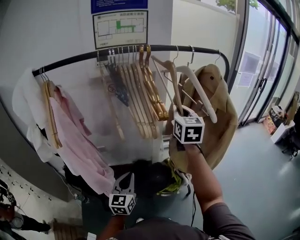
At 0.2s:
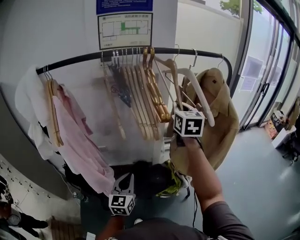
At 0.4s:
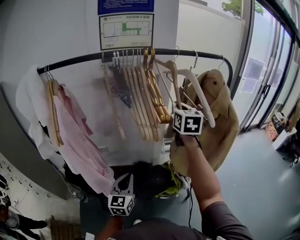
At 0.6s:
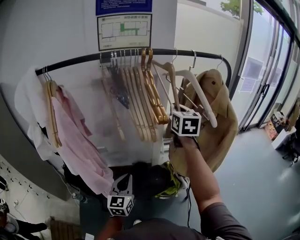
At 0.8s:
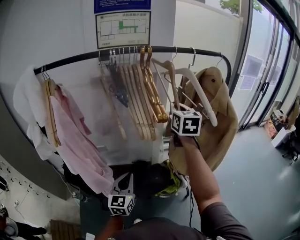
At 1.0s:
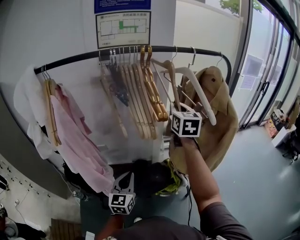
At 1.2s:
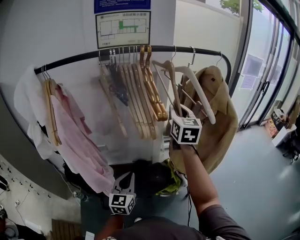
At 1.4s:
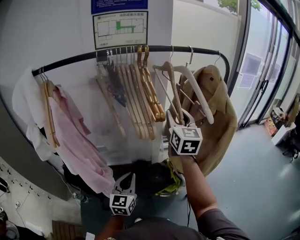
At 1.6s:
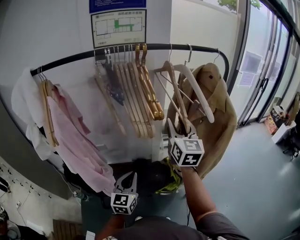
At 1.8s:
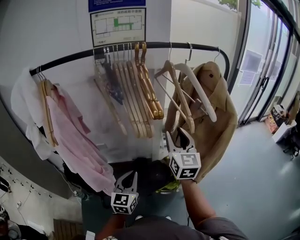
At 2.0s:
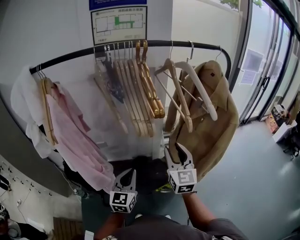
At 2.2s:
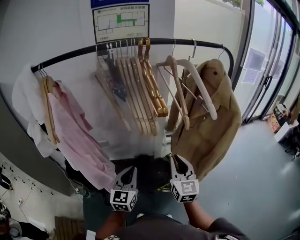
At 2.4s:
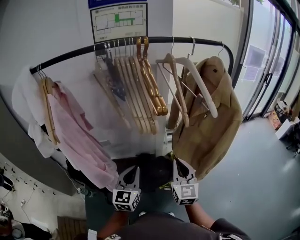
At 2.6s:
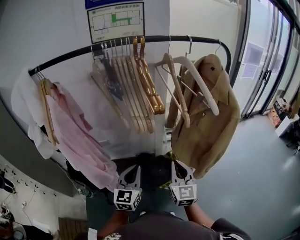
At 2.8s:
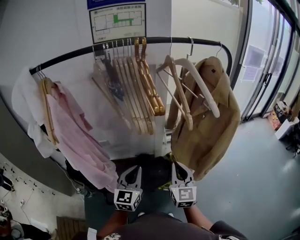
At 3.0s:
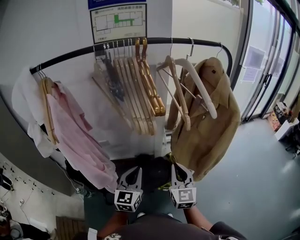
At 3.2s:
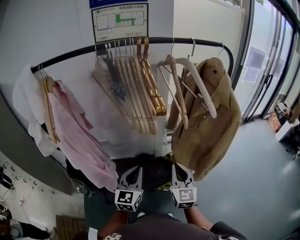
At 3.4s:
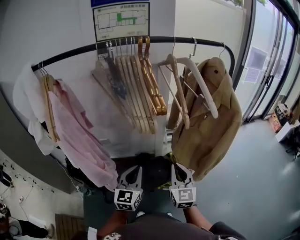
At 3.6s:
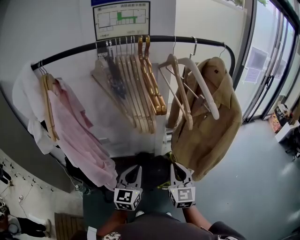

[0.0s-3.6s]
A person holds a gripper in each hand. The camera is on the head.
0.0s to 1.8s: The right gripper heads backward and downward, covering some 10 cm, and opens its fingers.
1.8s to 3.6s: The right gripper travels downward and backward by approximately 15 cm, and closes its fingers.

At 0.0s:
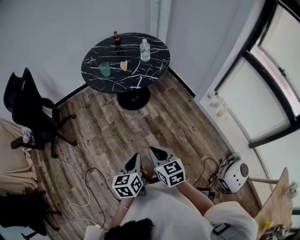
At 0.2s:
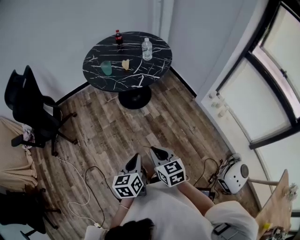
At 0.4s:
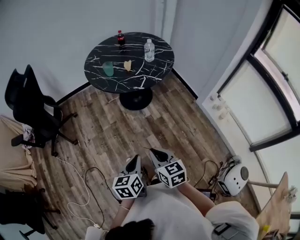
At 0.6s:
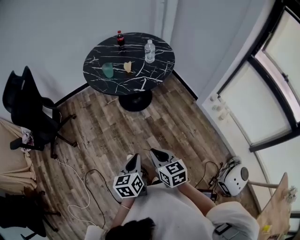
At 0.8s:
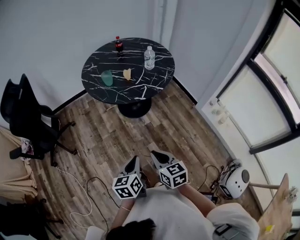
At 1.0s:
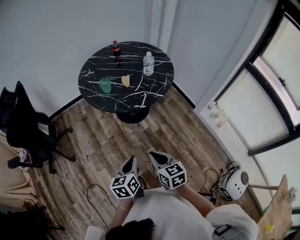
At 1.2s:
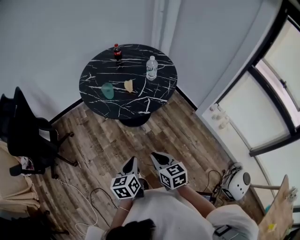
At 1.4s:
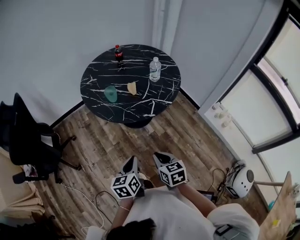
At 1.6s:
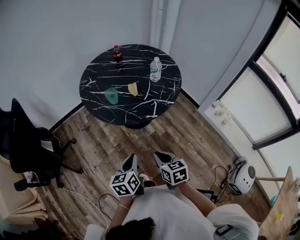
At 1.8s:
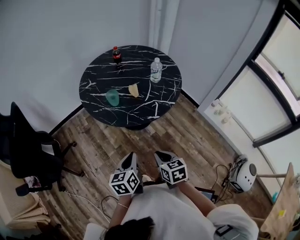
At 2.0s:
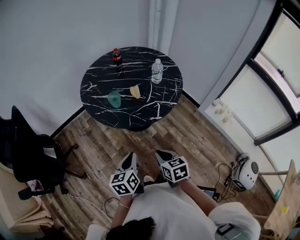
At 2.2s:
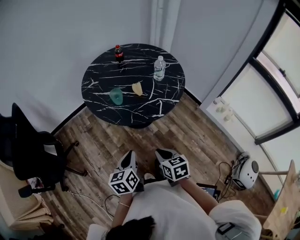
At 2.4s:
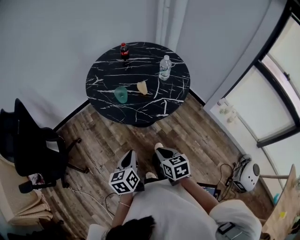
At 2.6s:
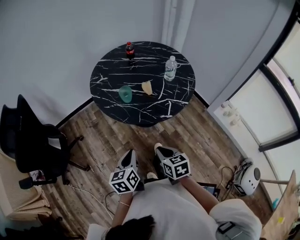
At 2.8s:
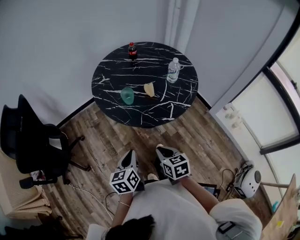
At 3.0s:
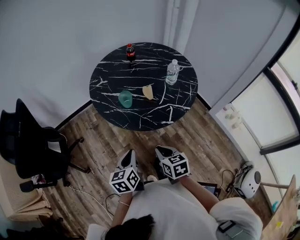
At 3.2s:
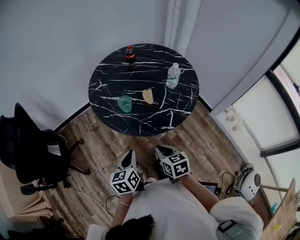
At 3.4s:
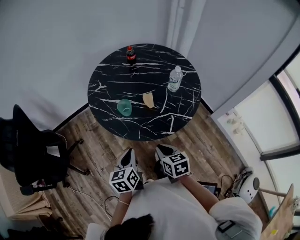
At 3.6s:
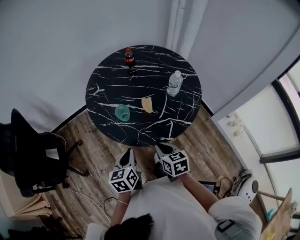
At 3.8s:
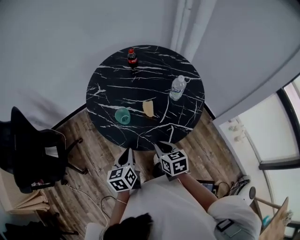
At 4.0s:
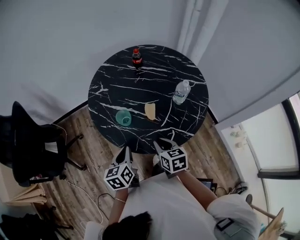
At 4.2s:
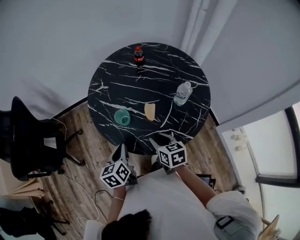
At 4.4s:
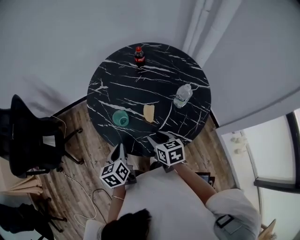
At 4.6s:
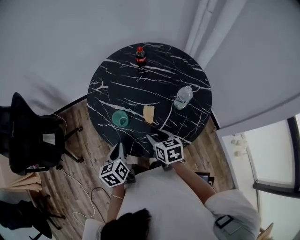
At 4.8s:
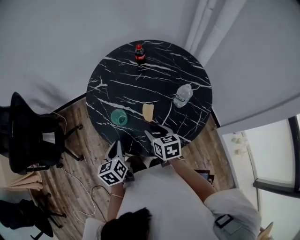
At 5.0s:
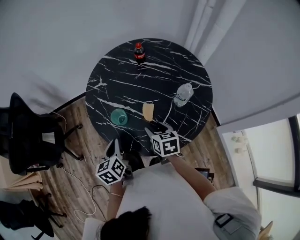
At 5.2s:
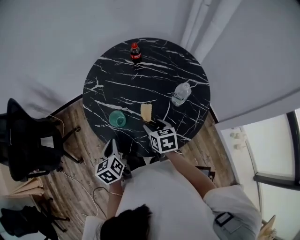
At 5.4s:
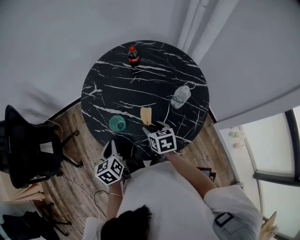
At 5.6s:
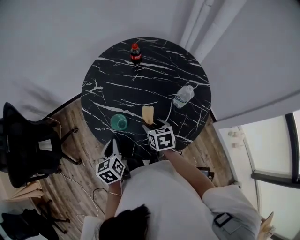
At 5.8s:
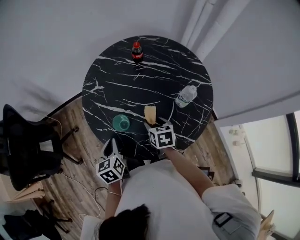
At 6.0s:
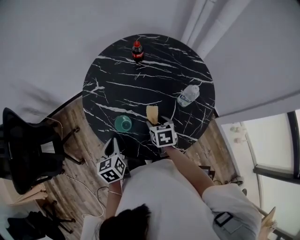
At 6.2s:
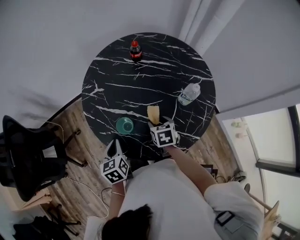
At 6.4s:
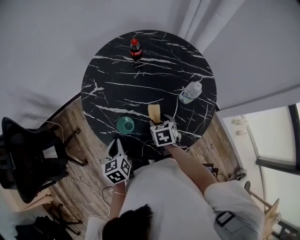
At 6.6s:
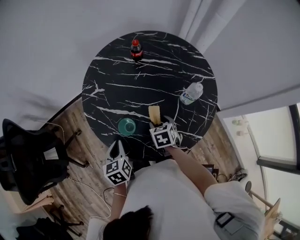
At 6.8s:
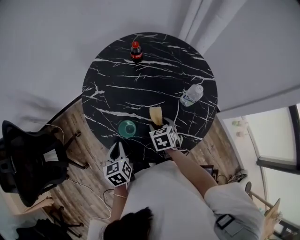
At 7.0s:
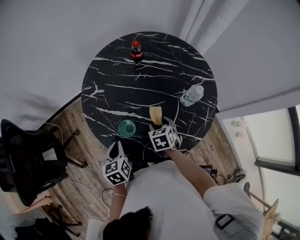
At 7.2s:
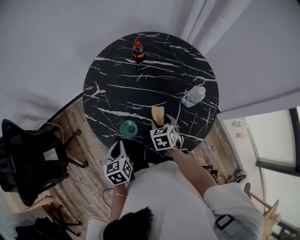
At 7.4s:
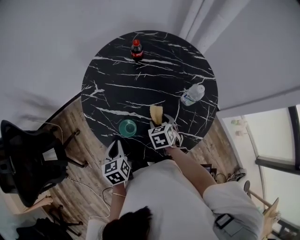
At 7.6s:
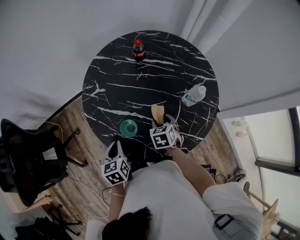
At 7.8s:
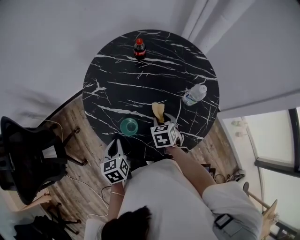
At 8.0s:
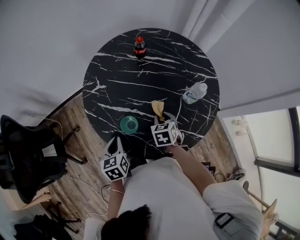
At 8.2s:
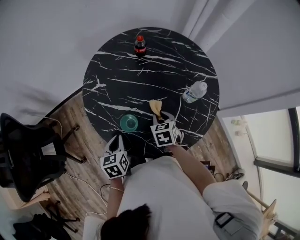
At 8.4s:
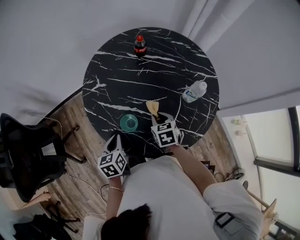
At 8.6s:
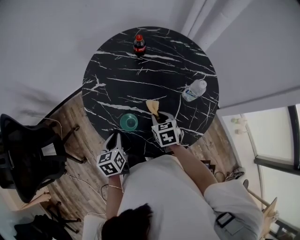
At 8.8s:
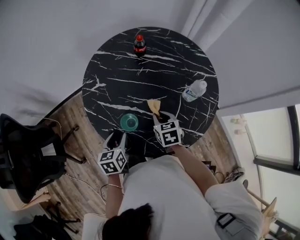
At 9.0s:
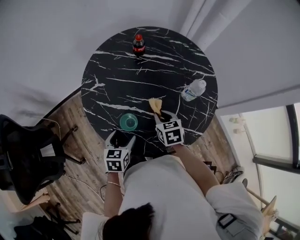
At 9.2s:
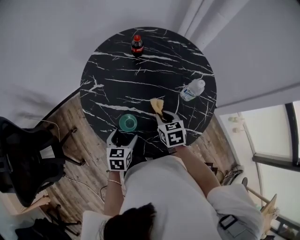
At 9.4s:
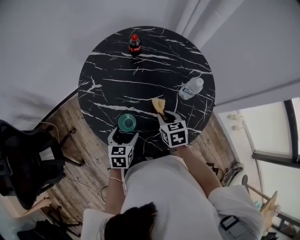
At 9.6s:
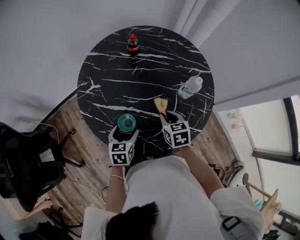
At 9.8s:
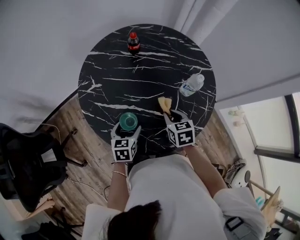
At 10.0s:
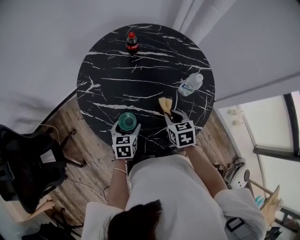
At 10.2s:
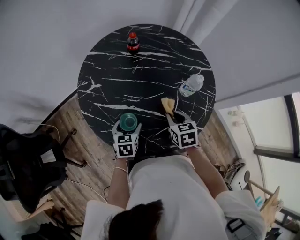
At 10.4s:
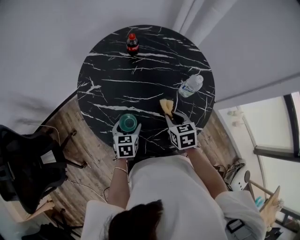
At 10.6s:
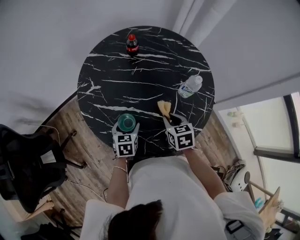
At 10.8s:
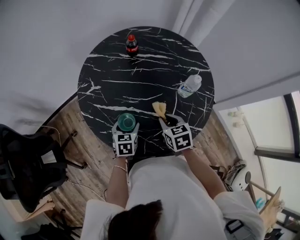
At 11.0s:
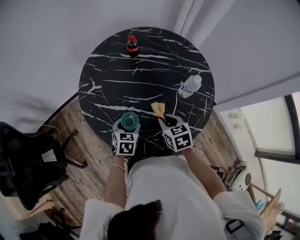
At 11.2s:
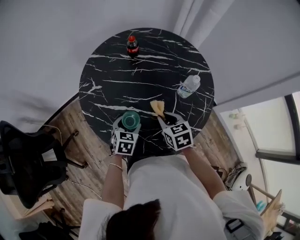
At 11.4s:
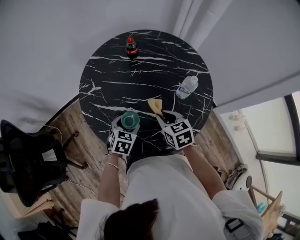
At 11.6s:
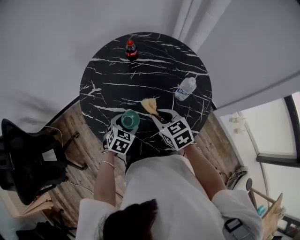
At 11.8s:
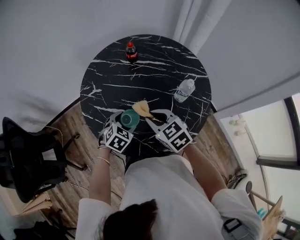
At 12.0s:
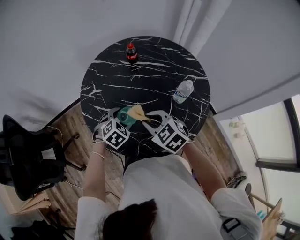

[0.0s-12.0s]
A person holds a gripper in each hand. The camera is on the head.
0.0s to 1.6s: The left gripper shifts approximately 30 cm forward and to the left; the right gripper moves forward, roughly 20 cm.
1.6s to 3.0s: The left gripper shifts approximately 10 cm forward and to the left, while the right gripper travels forward by some 10 cm.
3.0s to 4.4s: The right gripper travels forward and to the right by roughly 25 cm, and opens; the left gripper heads forward, covering approximately 15 cm.
4.4s to 6.0s: The right gripper moves forward and downward, some 10 cm; the left gripper goes some 10 cm forward.
6.0s to 7.6s: The grippers make only small movements.
7.6s to 9.0s: The right gripper closes its fingers. The left gripper shifts by some 5 cm, turns by approximately 20 degrees, and opens.
9.0s to 10.4s: The left gripper goes roughly 5 cm forward, while the right gripper is displaced to the right by approximately 5 cm.
10.4s to 12.0s: The left gripper goes about 5 cm upward, and rolls clockwise, seen from behind, by approximately 40 degrees. The right gripper goes approximately 10 cm upward and to the left, and changes its angle by approximately 40 degrees.

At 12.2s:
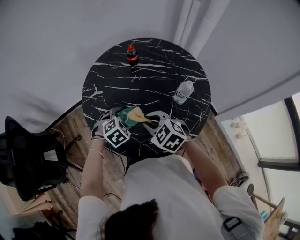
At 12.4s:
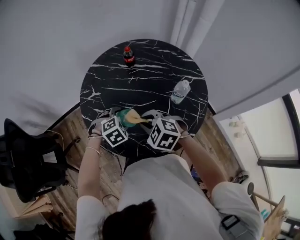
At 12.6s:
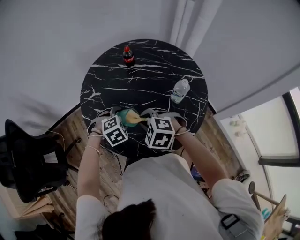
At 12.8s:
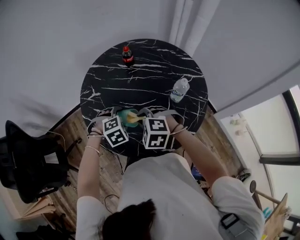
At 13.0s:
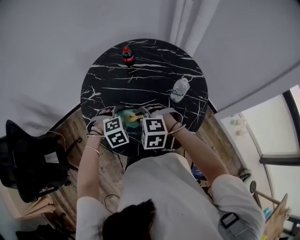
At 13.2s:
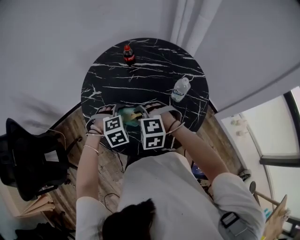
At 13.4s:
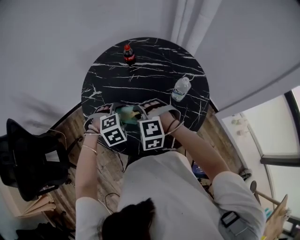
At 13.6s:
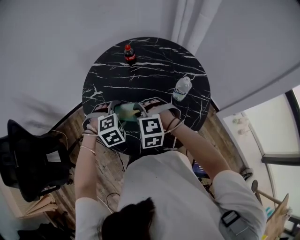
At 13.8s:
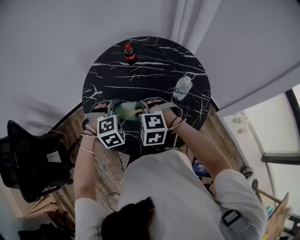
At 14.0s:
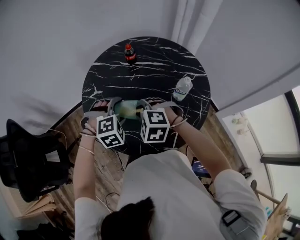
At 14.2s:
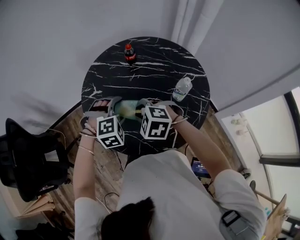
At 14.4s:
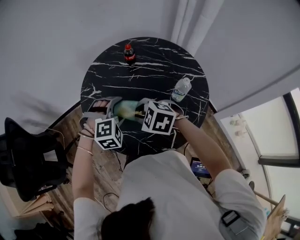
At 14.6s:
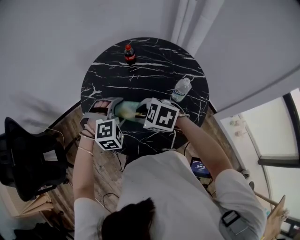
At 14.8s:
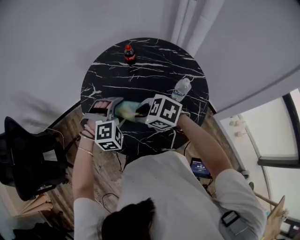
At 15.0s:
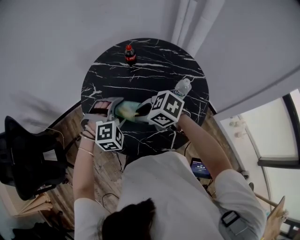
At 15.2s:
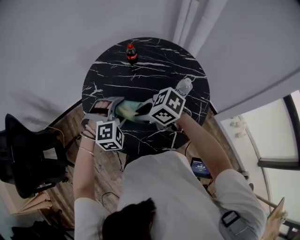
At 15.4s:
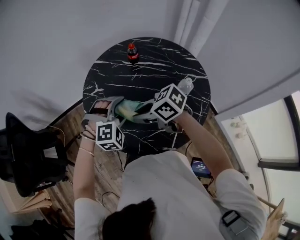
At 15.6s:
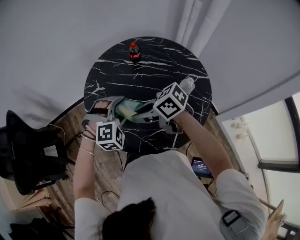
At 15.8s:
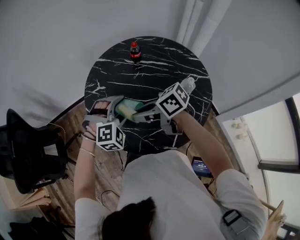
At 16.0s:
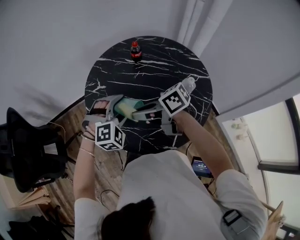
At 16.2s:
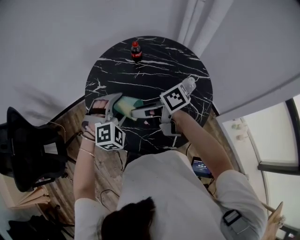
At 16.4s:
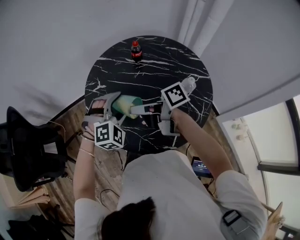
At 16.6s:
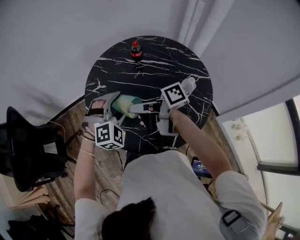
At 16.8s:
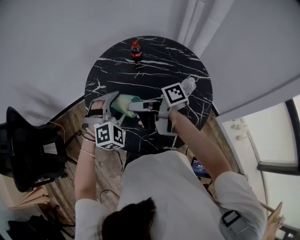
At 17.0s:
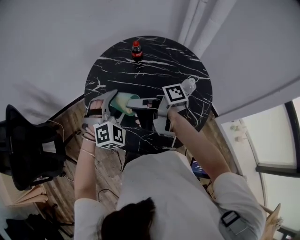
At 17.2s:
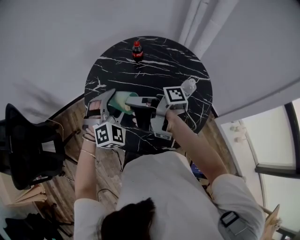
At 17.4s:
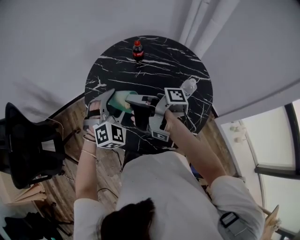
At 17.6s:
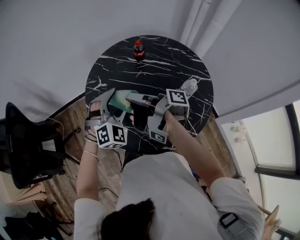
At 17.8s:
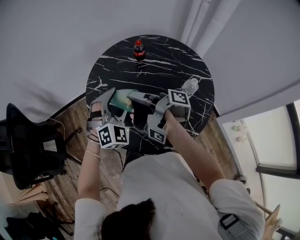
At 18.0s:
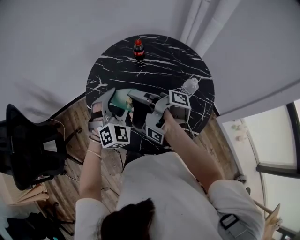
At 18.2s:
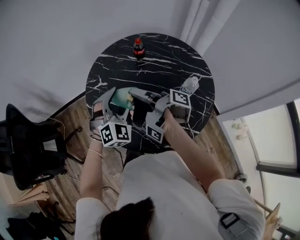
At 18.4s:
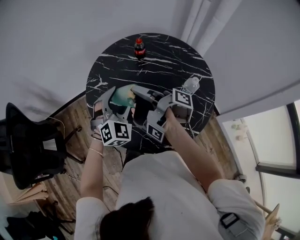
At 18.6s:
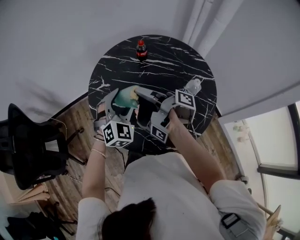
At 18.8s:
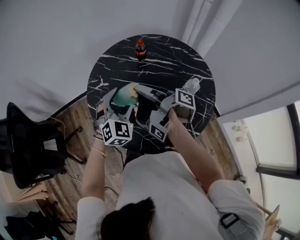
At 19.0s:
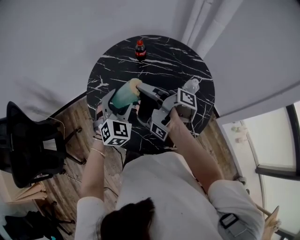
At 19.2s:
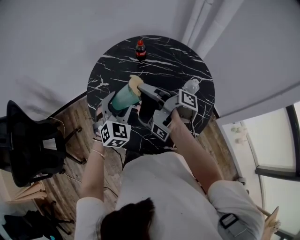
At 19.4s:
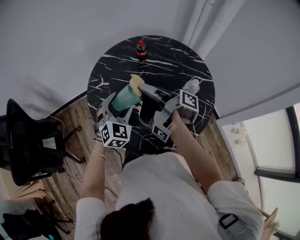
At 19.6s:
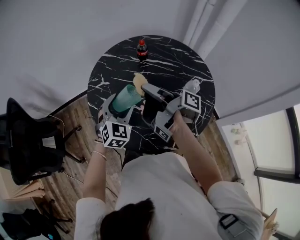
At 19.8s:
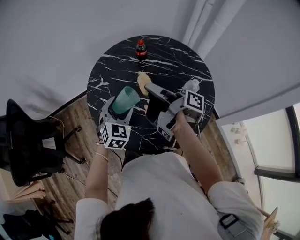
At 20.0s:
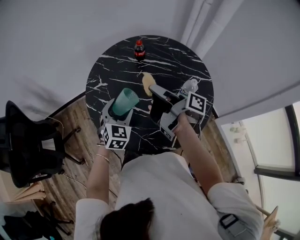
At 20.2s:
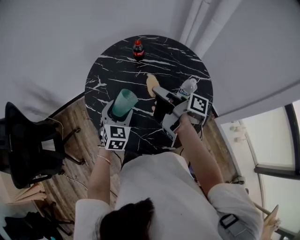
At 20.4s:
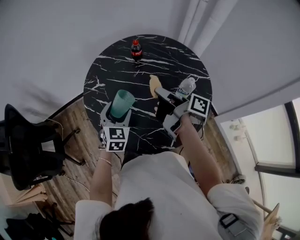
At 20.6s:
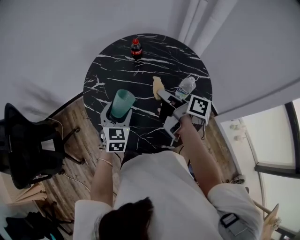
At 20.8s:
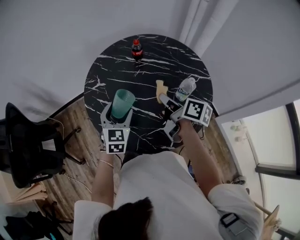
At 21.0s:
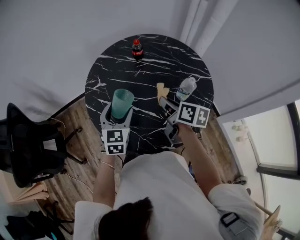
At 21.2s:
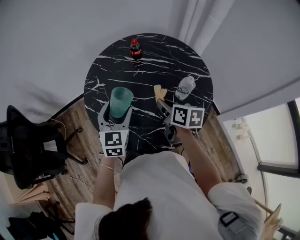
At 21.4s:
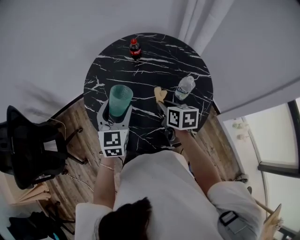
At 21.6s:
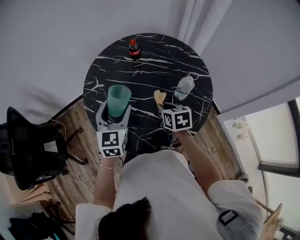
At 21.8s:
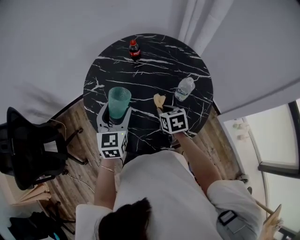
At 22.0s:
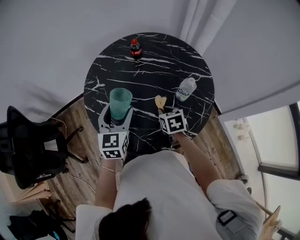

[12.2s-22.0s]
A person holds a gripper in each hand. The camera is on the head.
12.2s to 13.6s: The left gripper moves upward, some 5 cm. Meanwhile the right gripper rotates about 40 degrees.
13.6s to 15.0s: The right gripper rotates some 60 degrees.
15.0s to 16.4s: The right gripper goes some 5 cm upward, and tips its fingers upward by roughly 40 degrees.
16.4s to 17.8s: The left gripper changes its angle by about 20 degrees. The right gripper rotates some 50 degrees.
17.8s to 19.2s: The grippers make only small movements.
19.2s to 20.6s: The right gripper travels to the right and downward by some 10 cm, and rotates approximately 30 degrees; the left gripper rotates approximately 20 degrees.
20.6s to 22.0s: The right gripper travels downward by roughly 15 cm, and points its fingers roughly 40 degrees further downward.
